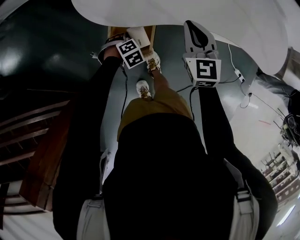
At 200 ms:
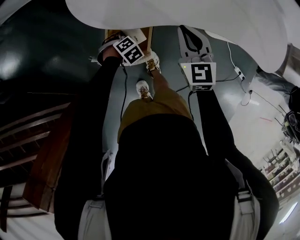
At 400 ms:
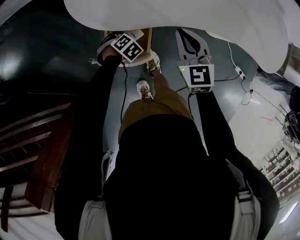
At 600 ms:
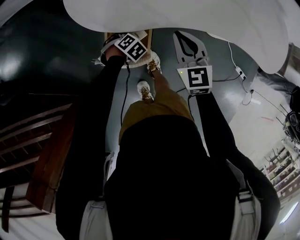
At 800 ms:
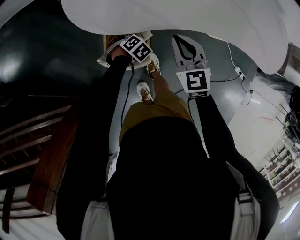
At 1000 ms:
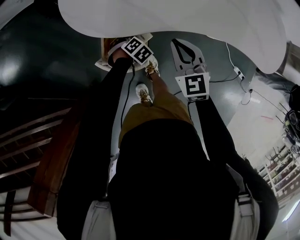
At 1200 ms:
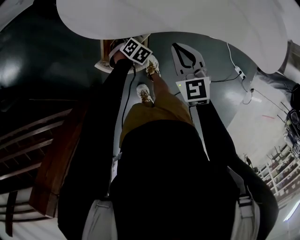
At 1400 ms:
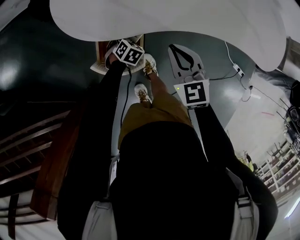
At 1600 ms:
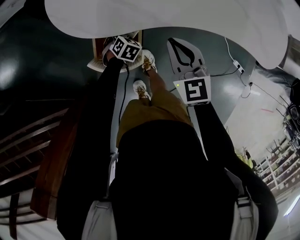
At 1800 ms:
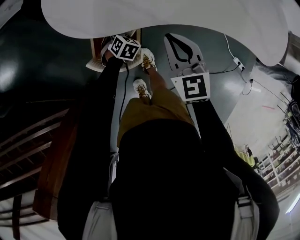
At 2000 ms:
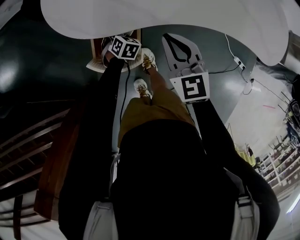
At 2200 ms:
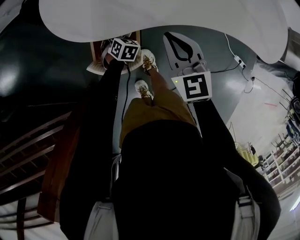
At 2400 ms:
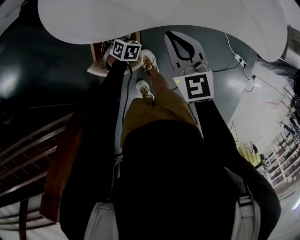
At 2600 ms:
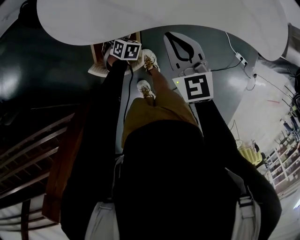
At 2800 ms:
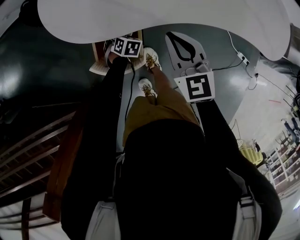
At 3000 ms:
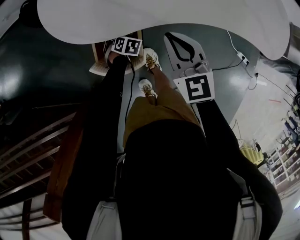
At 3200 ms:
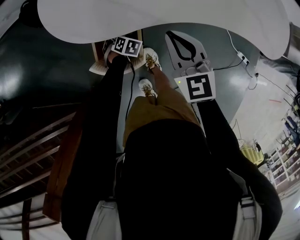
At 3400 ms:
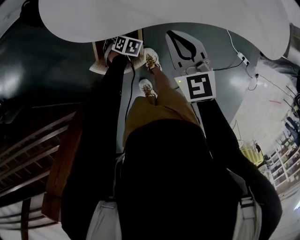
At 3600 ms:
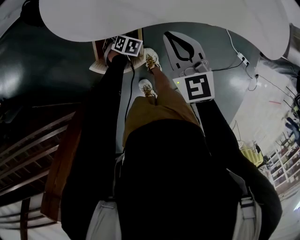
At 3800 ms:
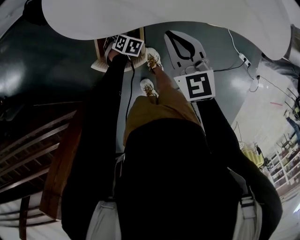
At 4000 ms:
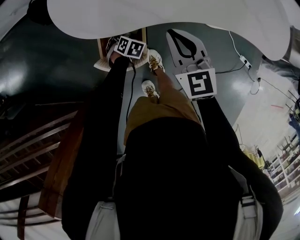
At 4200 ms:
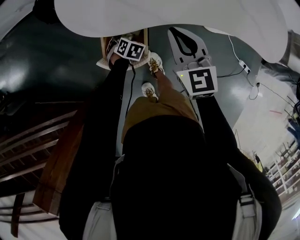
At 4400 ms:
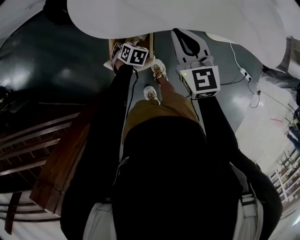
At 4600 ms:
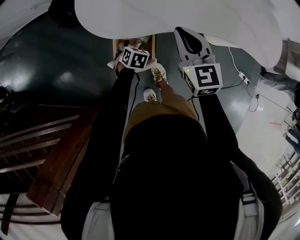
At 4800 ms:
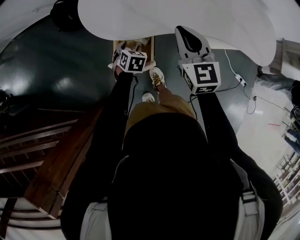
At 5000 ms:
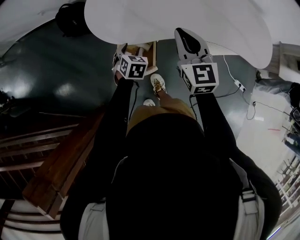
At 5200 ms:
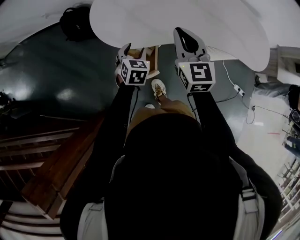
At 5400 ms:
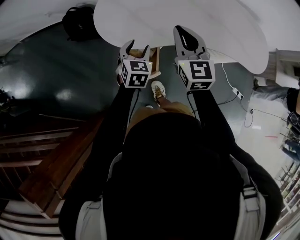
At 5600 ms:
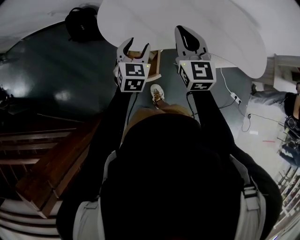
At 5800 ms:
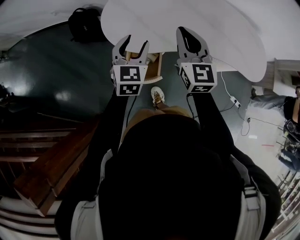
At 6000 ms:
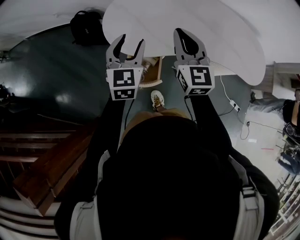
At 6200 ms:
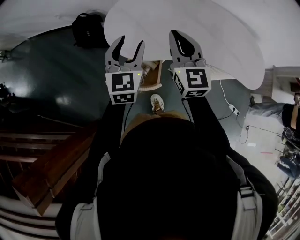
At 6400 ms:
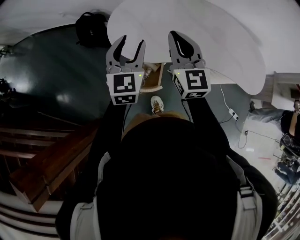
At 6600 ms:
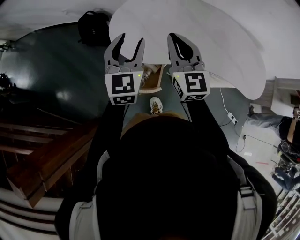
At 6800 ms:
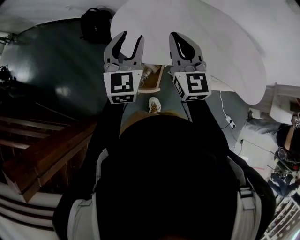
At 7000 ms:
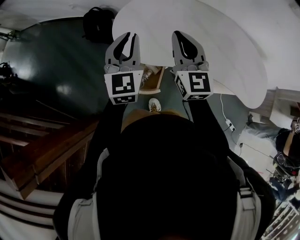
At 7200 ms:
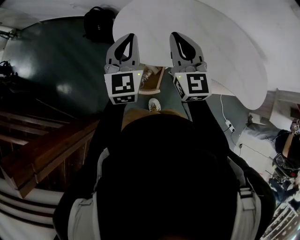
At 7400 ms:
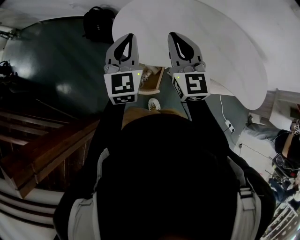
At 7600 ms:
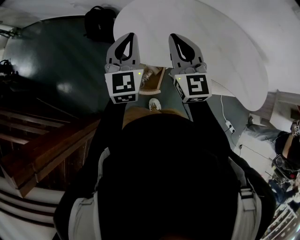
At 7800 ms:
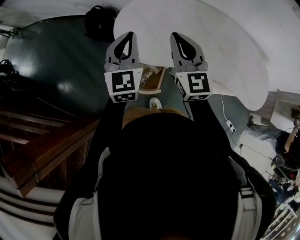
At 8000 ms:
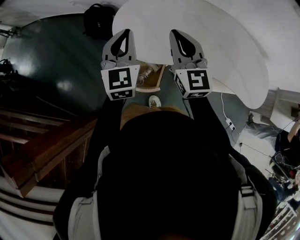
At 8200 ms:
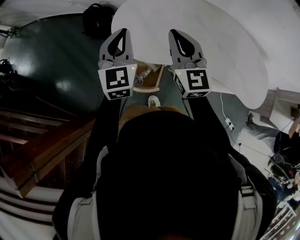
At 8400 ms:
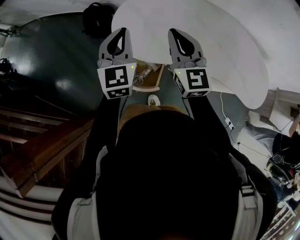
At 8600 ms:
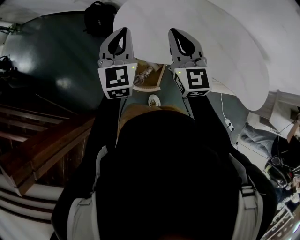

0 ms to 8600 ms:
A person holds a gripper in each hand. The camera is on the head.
0 ms to 1400 ms: The left gripper changes place by roughly 10 cm, and rotates roughly 30 degrees, while the right gripper changes place by approximately 5 cm.
1400 ms to 2800 ms: The grippers stay close to where they were, moving slightly.
2800 ms to 4400 ms: The left gripper is displaced upward by approximately 5 cm.
4400 ms to 5800 ms: The right gripper shifts some 15 cm upward. The left gripper moves upward, approximately 35 cm, and tilts its fingers approximately 50 degrees upward.
5800 ms to 7200 ms: The left gripper heads upward, covering about 10 cm, turns by about 20 degrees, and closes. Meanwhile the right gripper changes place by roughly 5 cm.
7200 ms to 8600 ms: The grippers stay close to where they were, moving slightly.

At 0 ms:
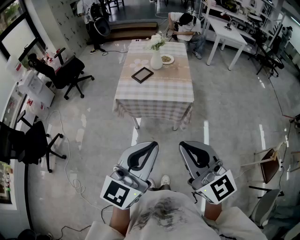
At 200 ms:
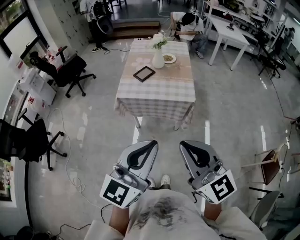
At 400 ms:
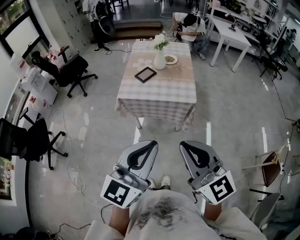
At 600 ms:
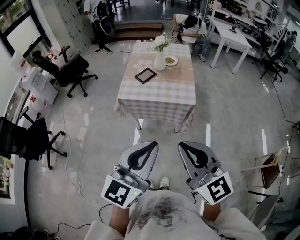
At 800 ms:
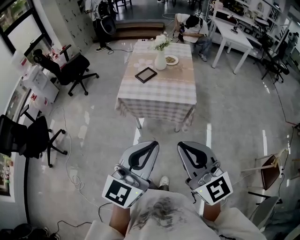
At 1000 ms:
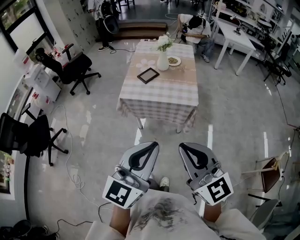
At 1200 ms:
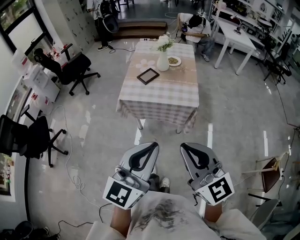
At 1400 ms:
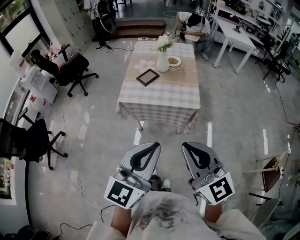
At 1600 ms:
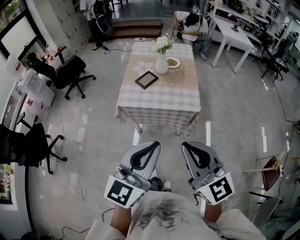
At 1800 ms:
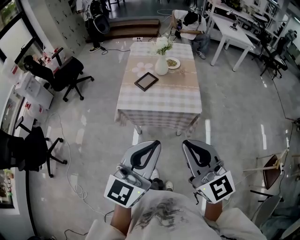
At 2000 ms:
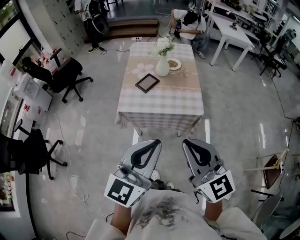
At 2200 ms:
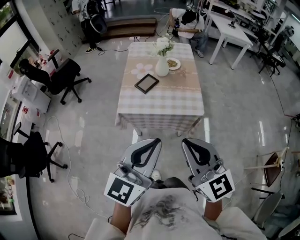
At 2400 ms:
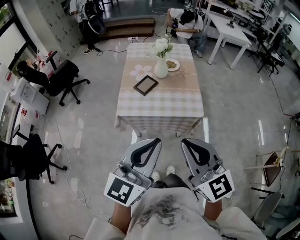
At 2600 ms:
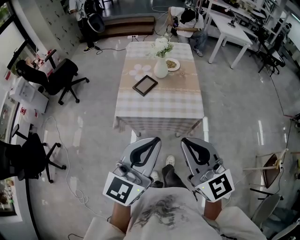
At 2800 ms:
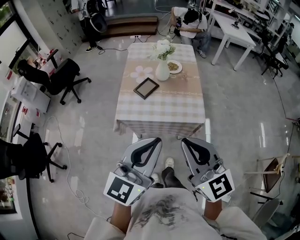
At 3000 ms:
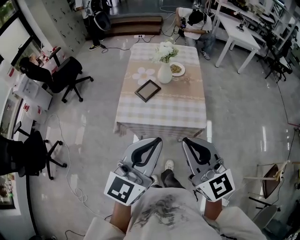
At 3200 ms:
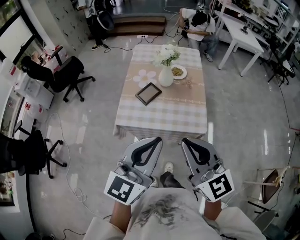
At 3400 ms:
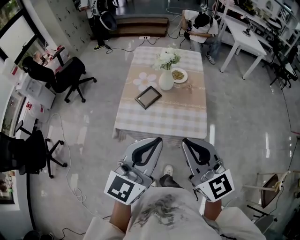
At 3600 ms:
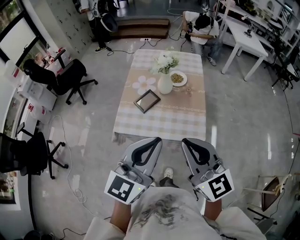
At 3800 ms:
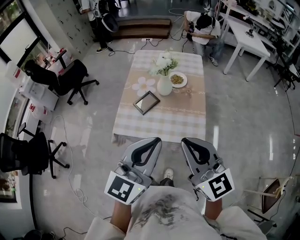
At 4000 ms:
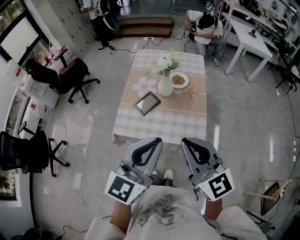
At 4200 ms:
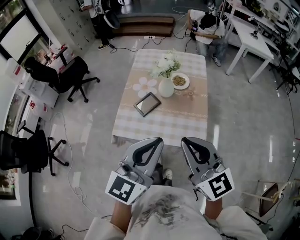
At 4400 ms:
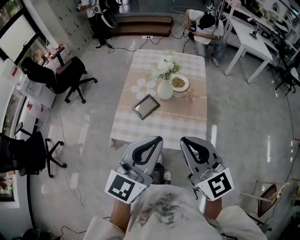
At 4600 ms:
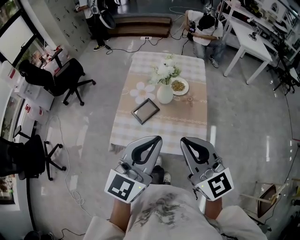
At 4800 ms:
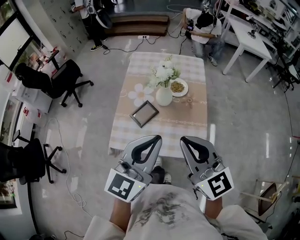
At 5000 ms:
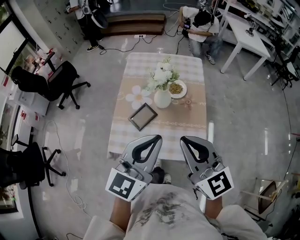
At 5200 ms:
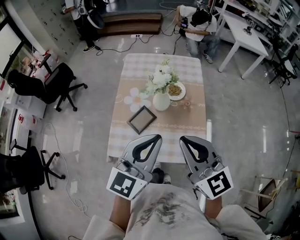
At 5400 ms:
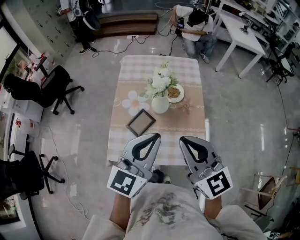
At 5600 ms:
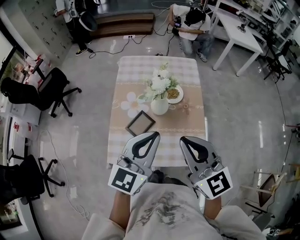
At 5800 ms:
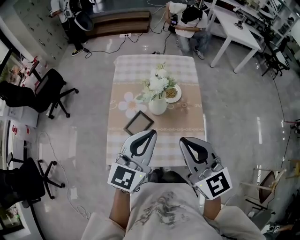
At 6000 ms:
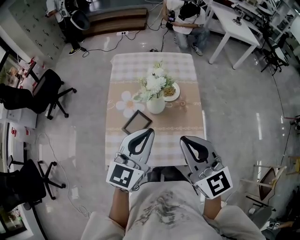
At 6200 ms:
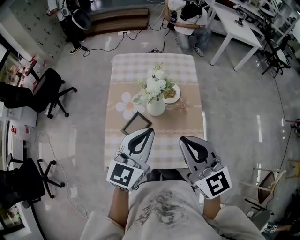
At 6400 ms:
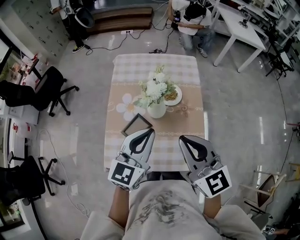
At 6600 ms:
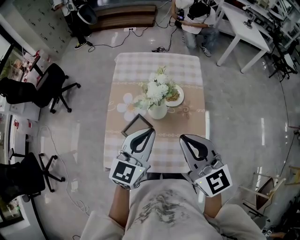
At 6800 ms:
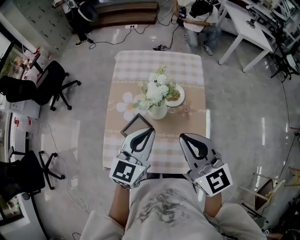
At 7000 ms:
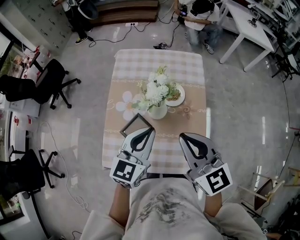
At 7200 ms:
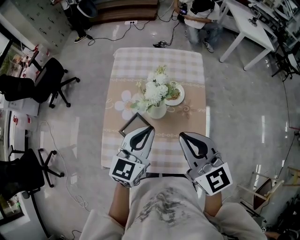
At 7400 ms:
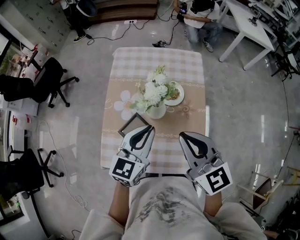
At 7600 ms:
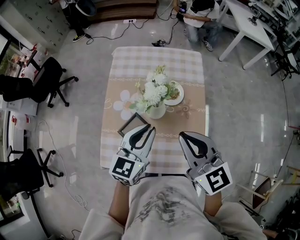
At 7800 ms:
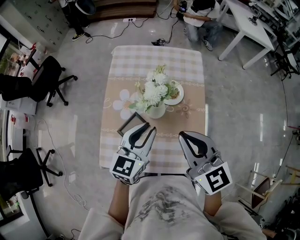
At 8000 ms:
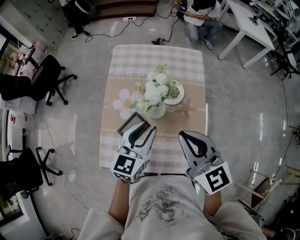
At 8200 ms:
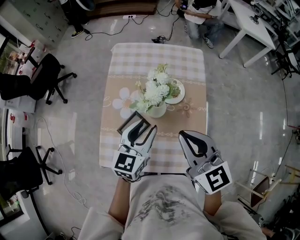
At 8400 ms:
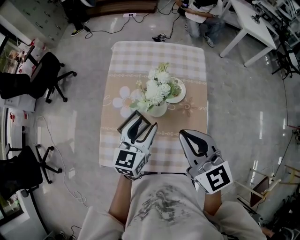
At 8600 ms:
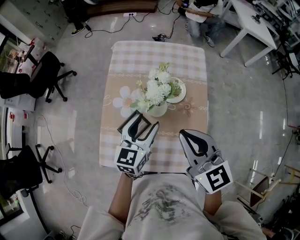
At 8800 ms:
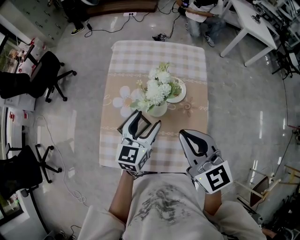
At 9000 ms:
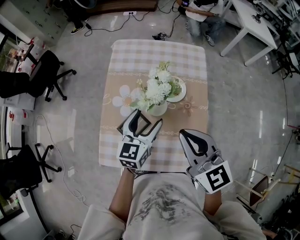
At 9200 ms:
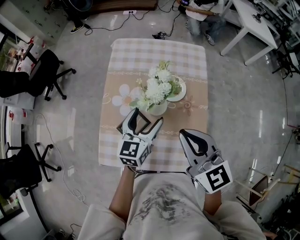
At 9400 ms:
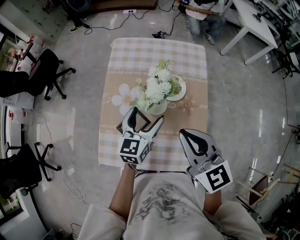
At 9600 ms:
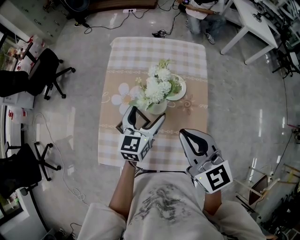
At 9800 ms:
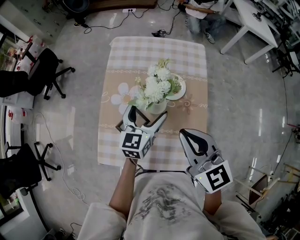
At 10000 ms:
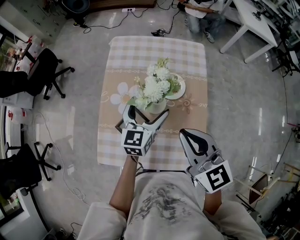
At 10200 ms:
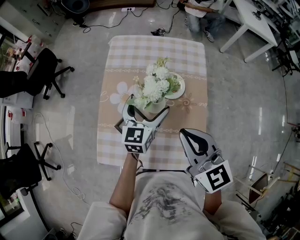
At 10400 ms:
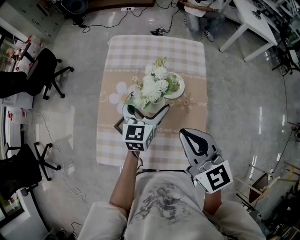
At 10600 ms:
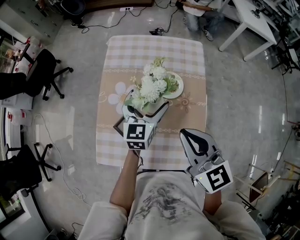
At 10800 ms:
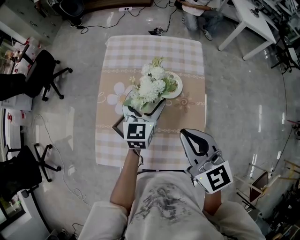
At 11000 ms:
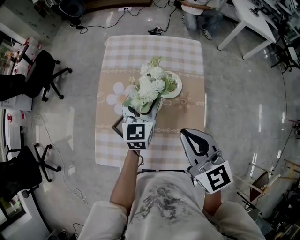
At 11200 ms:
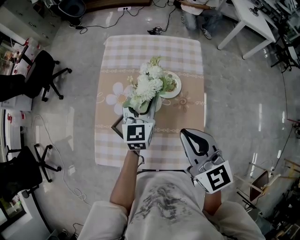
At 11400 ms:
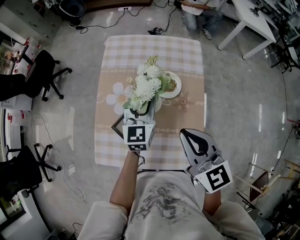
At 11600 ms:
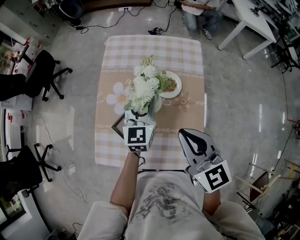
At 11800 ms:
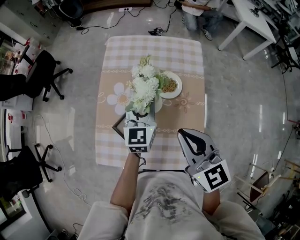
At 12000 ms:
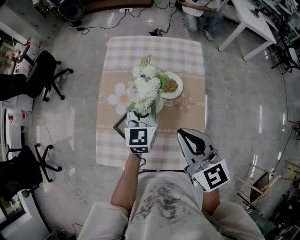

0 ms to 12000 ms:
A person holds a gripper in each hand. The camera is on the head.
0 ms to 1600 ms: Both grippers travel together forward, some 10 cm.
1600 ms to 3000 ms: Both grippers move forward, some 15 cm.
3000 ms to 4400 ms: Both grippers travel together forward and to the right, some 15 cm.
4400 ms to 6000 ms: The grippers both shift forward by about 15 cm.
6000 ms to 7600 ms: The right gripper travels forward by some 10 cm. Meanwhile the left gripper moves forward and downward, roughly 10 cm.
7600 ms to 9000 ms: The left gripper heads downward, covering some 5 cm, and opens.
9000 ms to 10400 ms: The left gripper goes roughly 5 cm forward, and opens up.
10400 ms to 12000 ms: The left gripper closes up.

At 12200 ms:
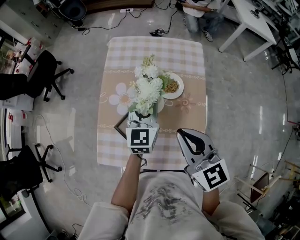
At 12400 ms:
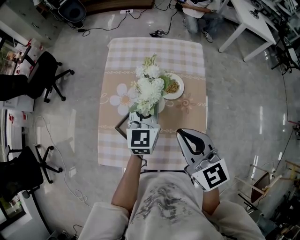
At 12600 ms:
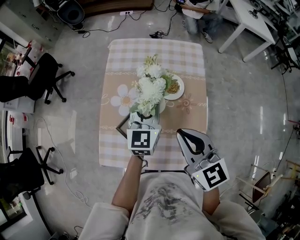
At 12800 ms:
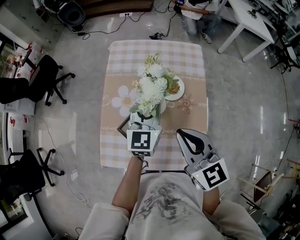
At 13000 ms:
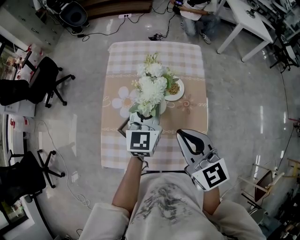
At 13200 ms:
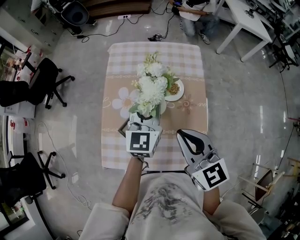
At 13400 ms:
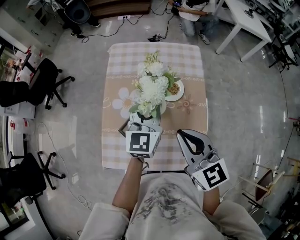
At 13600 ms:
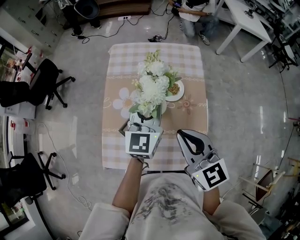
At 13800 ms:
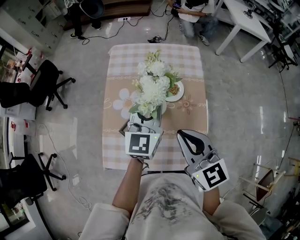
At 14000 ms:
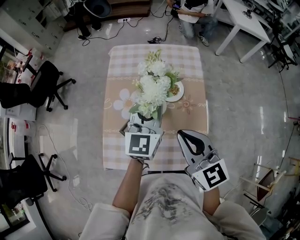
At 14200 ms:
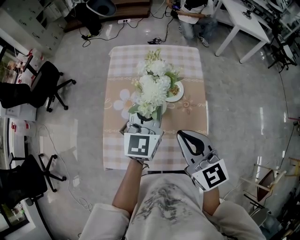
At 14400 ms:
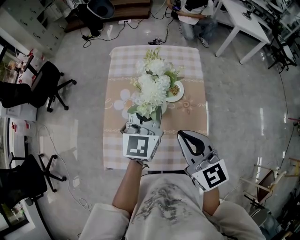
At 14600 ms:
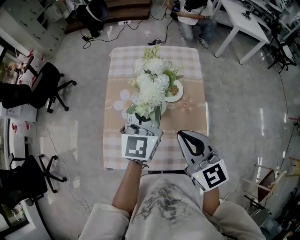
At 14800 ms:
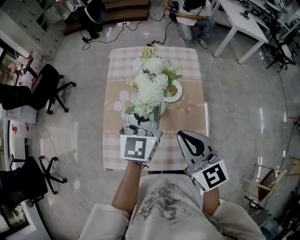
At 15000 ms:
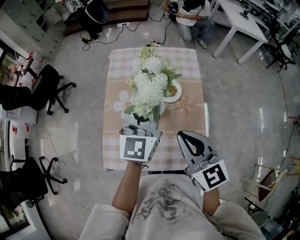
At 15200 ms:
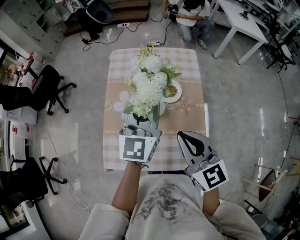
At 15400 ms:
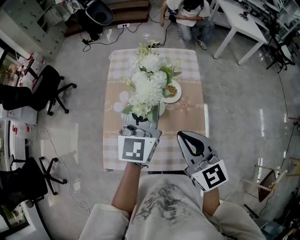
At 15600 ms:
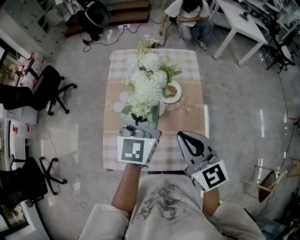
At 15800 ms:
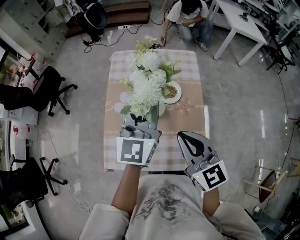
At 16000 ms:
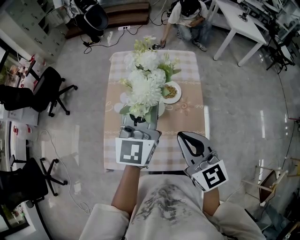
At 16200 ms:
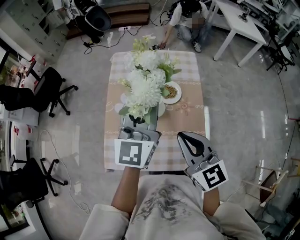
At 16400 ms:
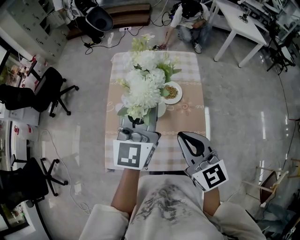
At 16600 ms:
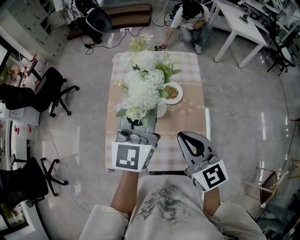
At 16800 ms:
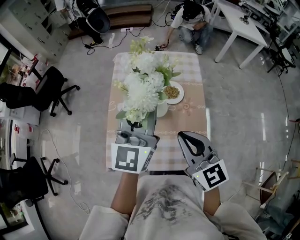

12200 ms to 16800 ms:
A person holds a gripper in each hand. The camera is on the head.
12200 ms to 13800 ms: The left gripper shifts approximately 10 cm upward.
13800 ms to 15200 ms: The left gripper moves upward, about 5 cm.
15200 ms to 16800 ms: The left gripper is displaced upward by approximately 5 cm.
